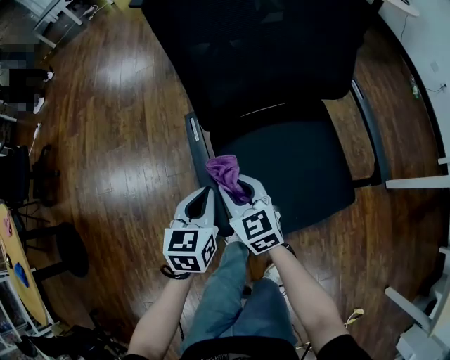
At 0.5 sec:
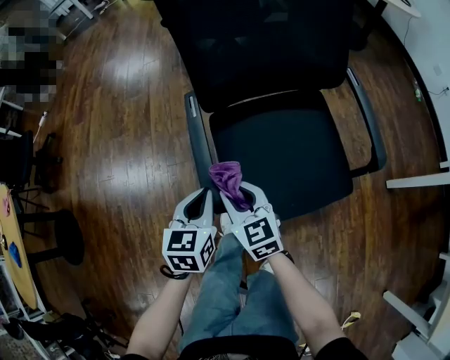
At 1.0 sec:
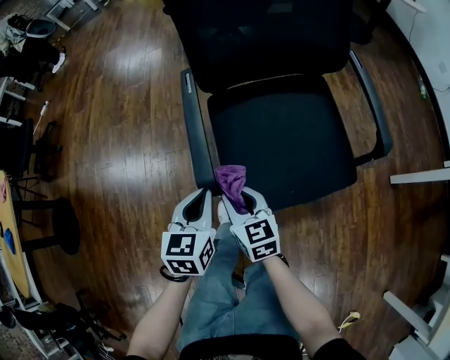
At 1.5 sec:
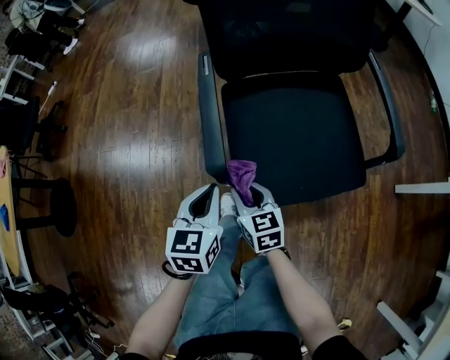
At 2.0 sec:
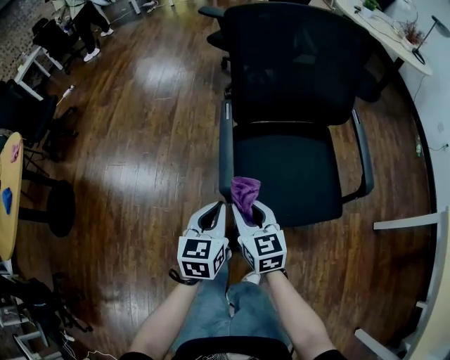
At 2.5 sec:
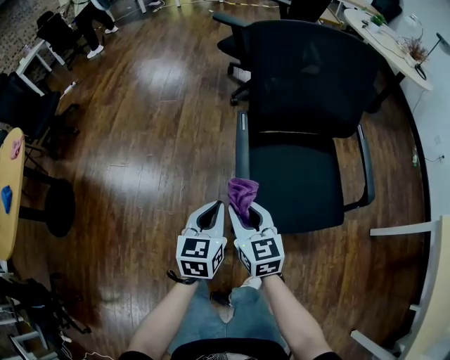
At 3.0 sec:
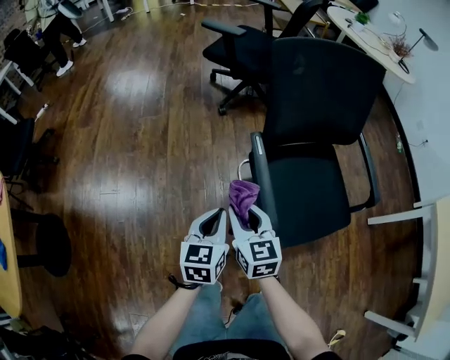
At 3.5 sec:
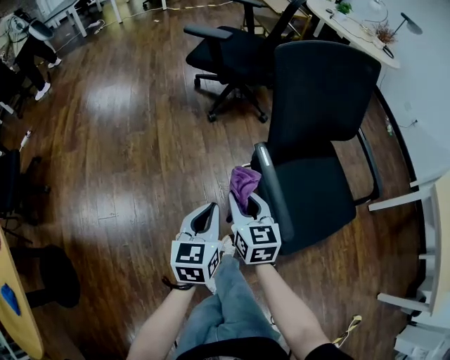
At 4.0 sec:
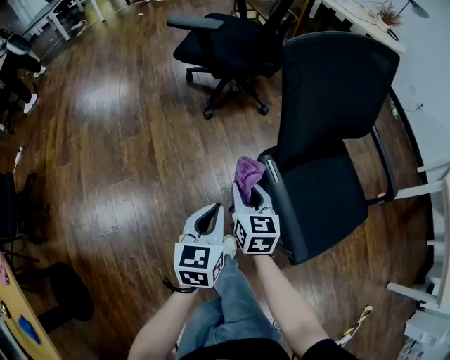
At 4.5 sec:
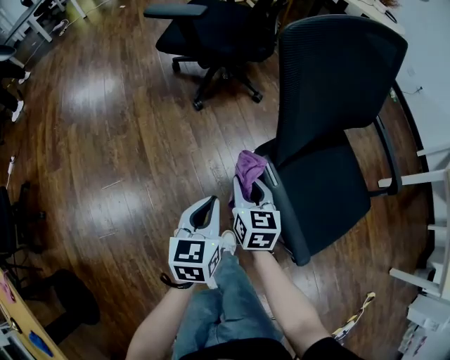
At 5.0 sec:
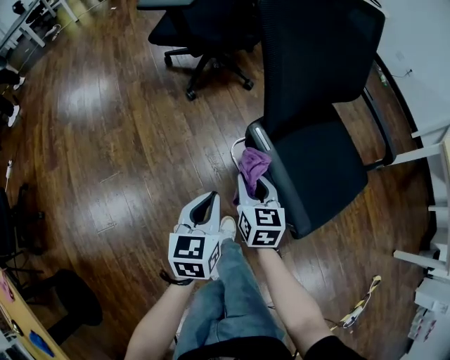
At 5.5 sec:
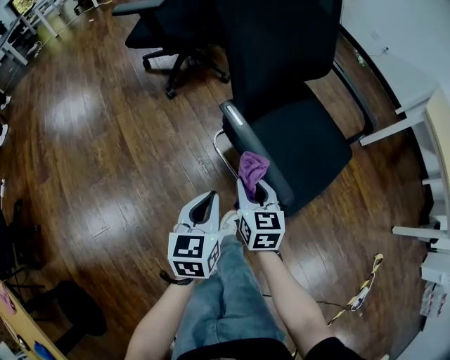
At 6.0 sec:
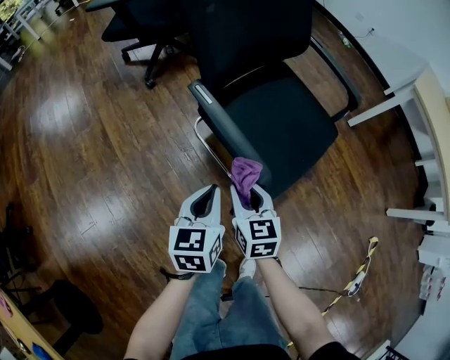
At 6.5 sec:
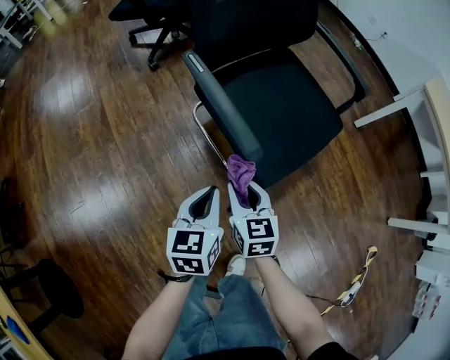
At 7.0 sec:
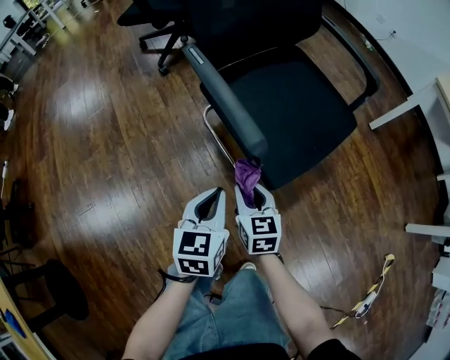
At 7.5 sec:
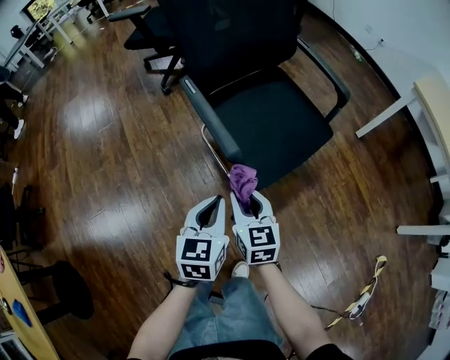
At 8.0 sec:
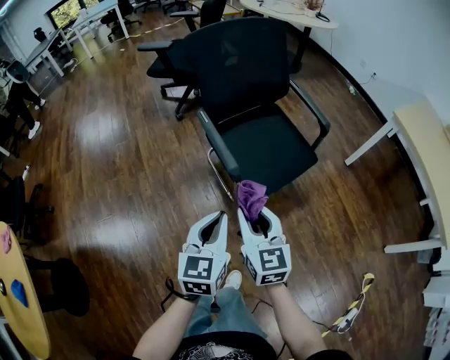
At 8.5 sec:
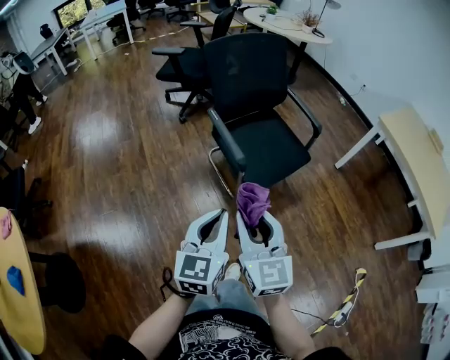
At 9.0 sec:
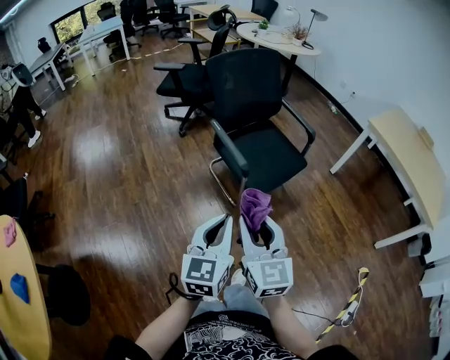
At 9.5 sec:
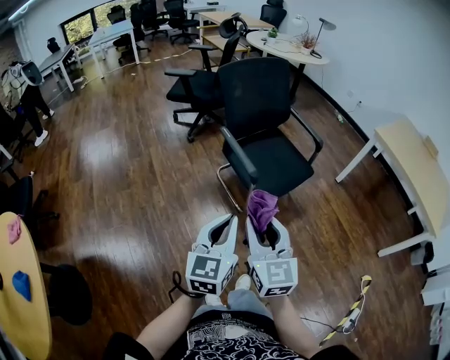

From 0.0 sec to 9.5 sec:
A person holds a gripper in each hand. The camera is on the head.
From 0.0 sec to 2.0 sec: Both grippers move backward, about 15 cm.
From 2.0 sec to 4.0 sec: The left gripper moves some 35 cm, and rotates some 20 degrees. Meanwhile the right gripper shifts by roughly 35 cm, and rotates roughly 30 degrees.
From 4.0 sec to 5.5 sec: Both grippers move backward and to the right, about 15 cm.
From 5.5 sec to 7.5 sec: The left gripper goes approximately 20 cm to the right and backward; the right gripper travels backward and to the right by approximately 20 cm.
From 7.5 sec to 9.5 sec: The two grippers go roughly 40 cm upward and backward. The right gripper swivels approximately 20 degrees, while the left gripper changes its angle by approximately 20 degrees.

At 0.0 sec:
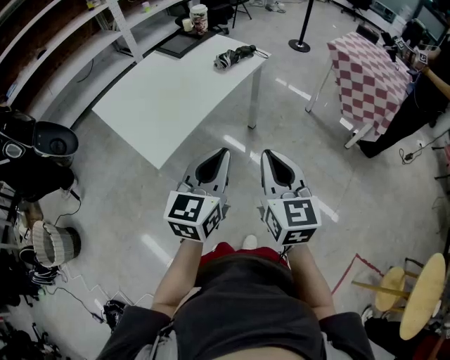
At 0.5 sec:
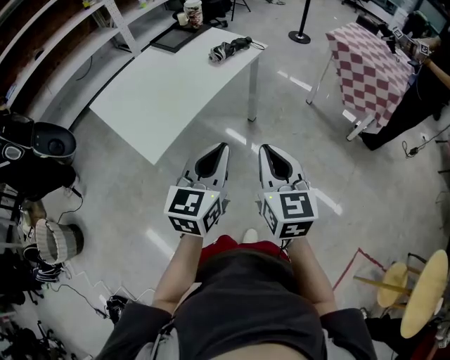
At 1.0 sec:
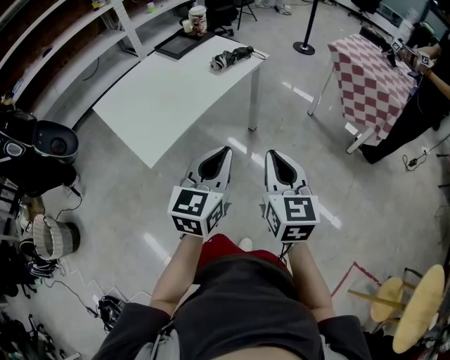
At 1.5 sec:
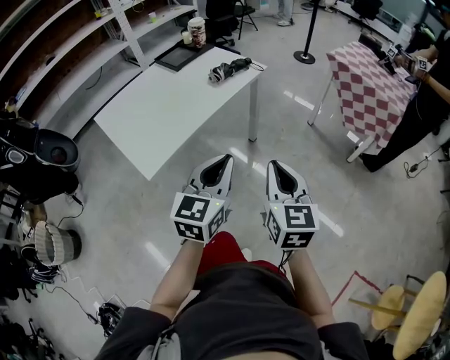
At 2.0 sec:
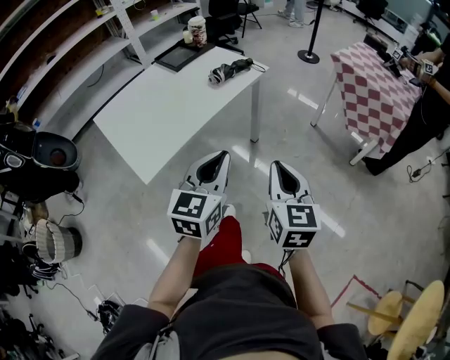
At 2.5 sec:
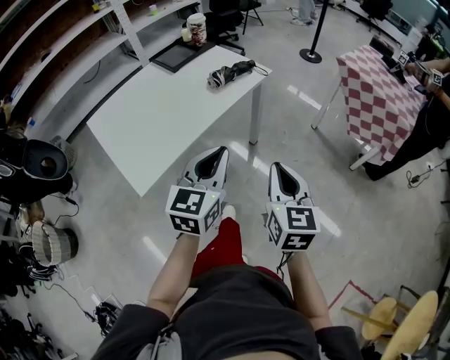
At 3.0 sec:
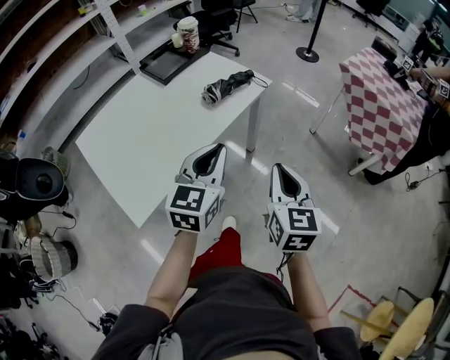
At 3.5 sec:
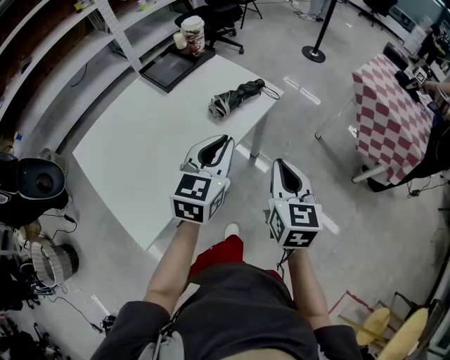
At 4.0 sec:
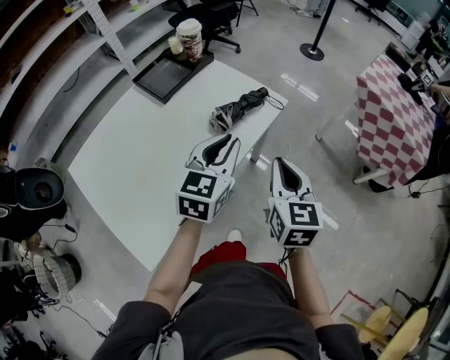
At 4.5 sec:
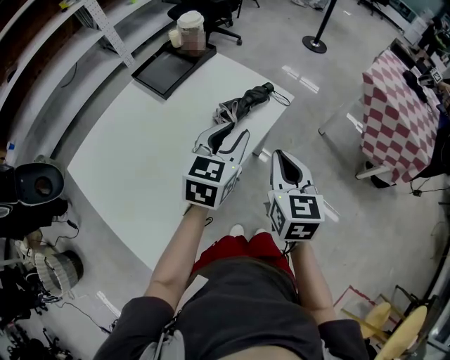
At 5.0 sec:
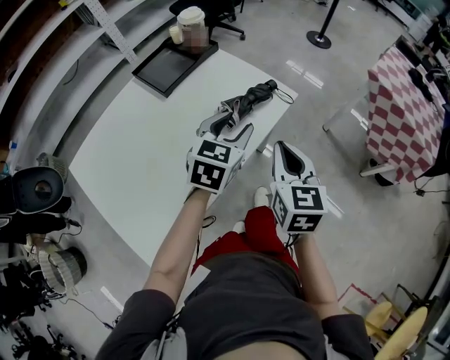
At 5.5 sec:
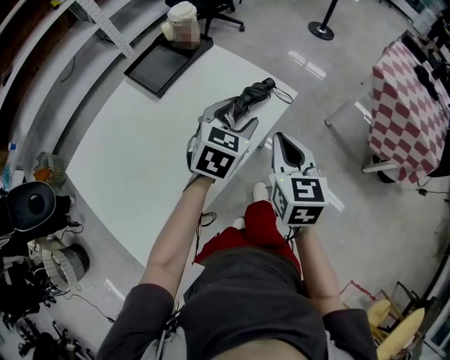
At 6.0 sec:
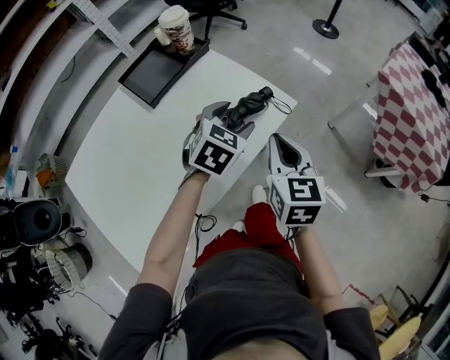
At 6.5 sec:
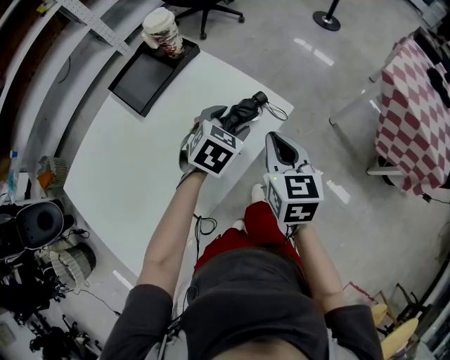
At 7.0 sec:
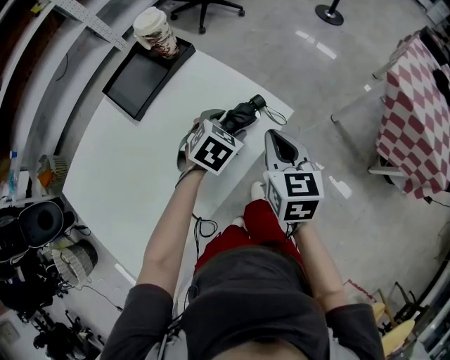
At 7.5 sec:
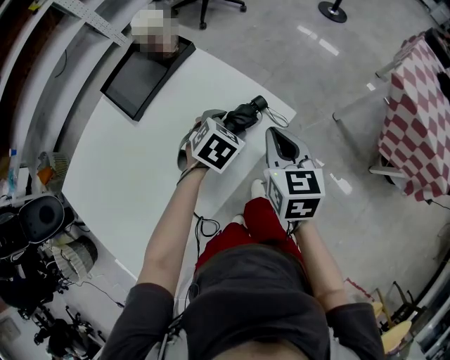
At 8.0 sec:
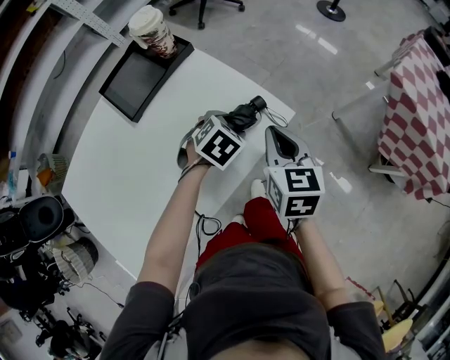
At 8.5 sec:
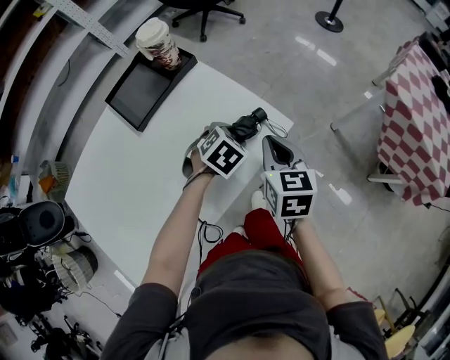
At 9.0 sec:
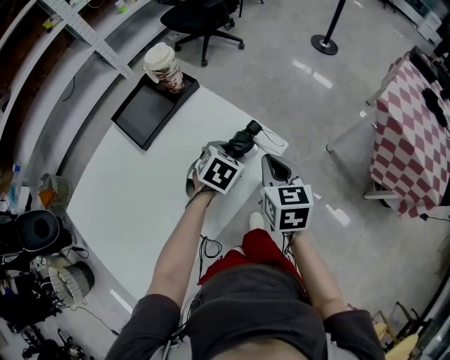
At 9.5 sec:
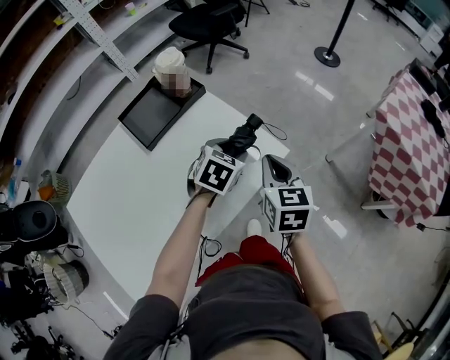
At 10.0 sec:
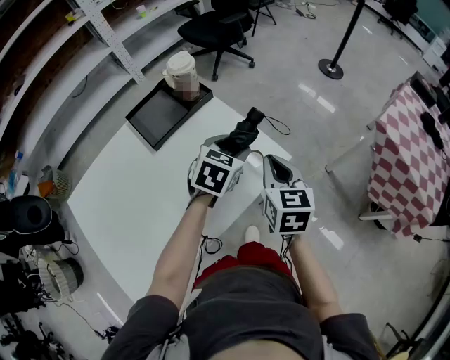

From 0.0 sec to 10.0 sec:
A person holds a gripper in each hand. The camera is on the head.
From 0.0 sec to 2.0 sec: The left gripper is displaced forward and to the right by roughly 10 cm; the right gripper is displaced to the right and forward by approximately 10 cm.
From 2.0 sec to 4.0 sec: Both grippers move forward, roughly 35 cm.
From 4.0 sec to 6.0 sec: The left gripper shifts about 20 cm forward and downward, turns by approximately 30 degrees, and opens up, while the right gripper is displaced forward by about 15 cm.
From 6.0 sec to 8.0 sec: The right gripper is displaced forward by about 10 cm, while the left gripper travels downward and forward by some 15 cm, and rotates about 20 degrees.
From 8.0 sec to 10.0 sec: The left gripper goes some 15 cm upward, and turns by some 30 degrees. The right gripper moves upward, approximately 5 cm.

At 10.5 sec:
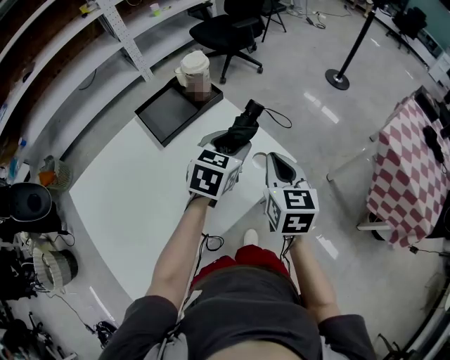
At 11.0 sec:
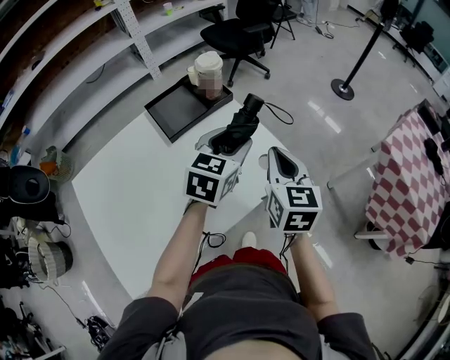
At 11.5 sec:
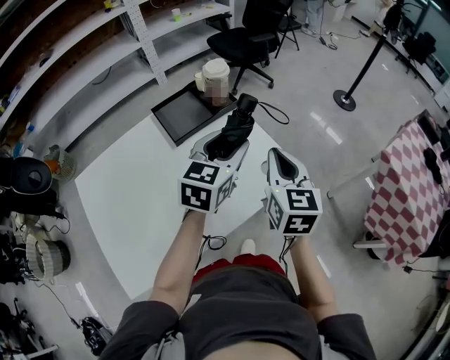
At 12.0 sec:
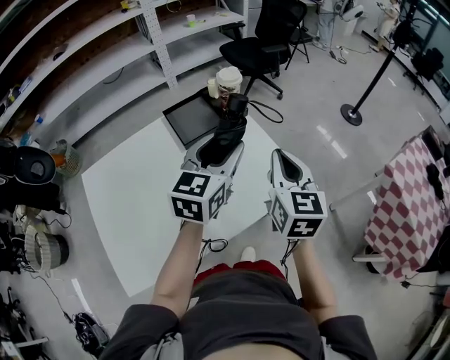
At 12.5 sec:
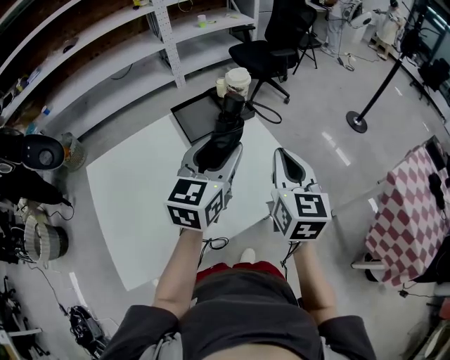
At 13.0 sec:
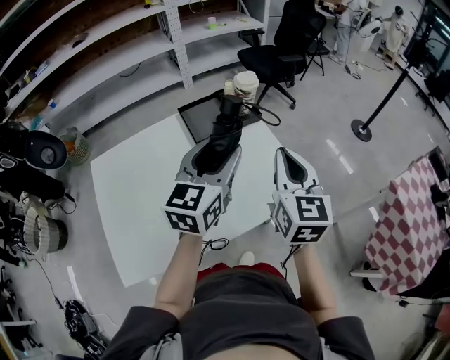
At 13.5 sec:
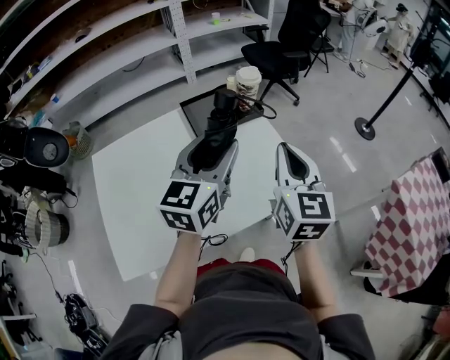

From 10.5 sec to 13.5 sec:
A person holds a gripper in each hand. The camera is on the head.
From 10.5 sec to 12.0 sec: The left gripper moves upward, to the left and backward, some 15 cm, and turns by roughly 30 degrees. Meanwhile the right gripper moves upward and to the left, roughly 10 cm.
From 12.0 sec to 13.5 sec: The left gripper shifts by approximately 5 cm.

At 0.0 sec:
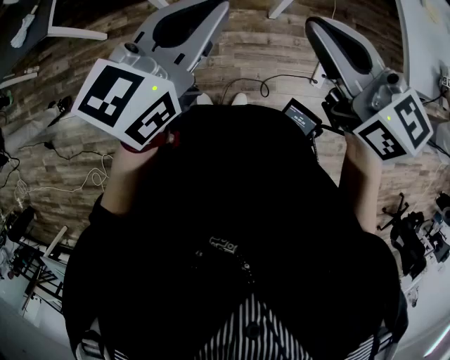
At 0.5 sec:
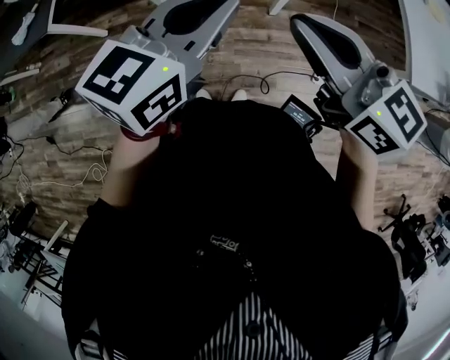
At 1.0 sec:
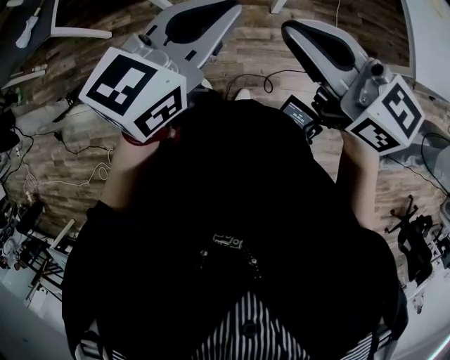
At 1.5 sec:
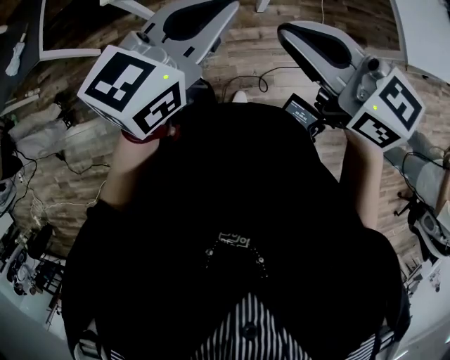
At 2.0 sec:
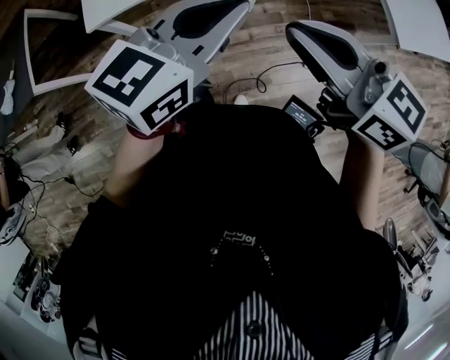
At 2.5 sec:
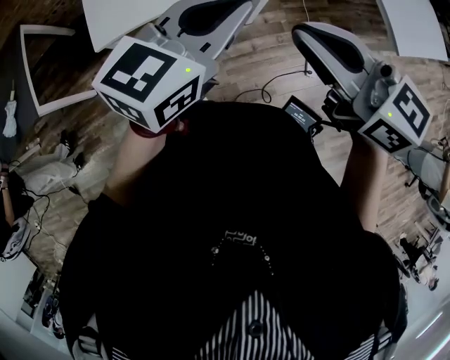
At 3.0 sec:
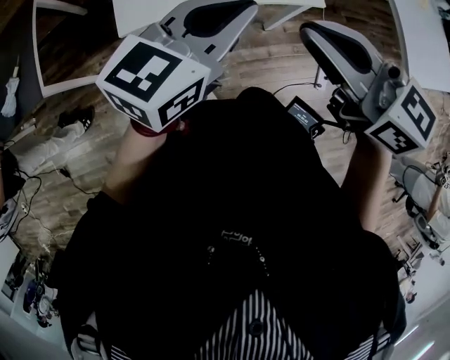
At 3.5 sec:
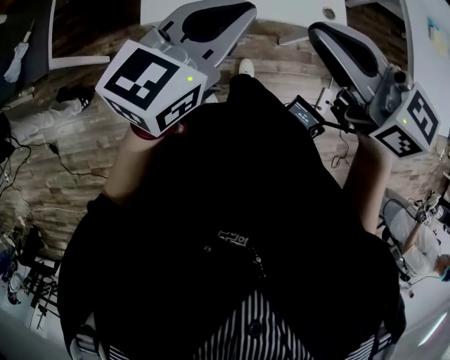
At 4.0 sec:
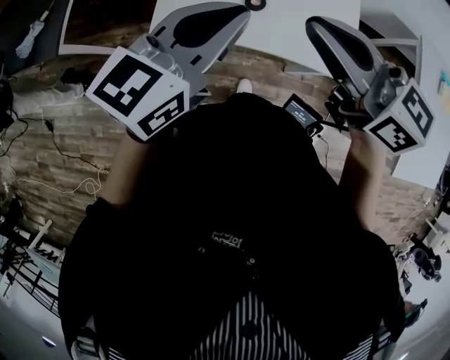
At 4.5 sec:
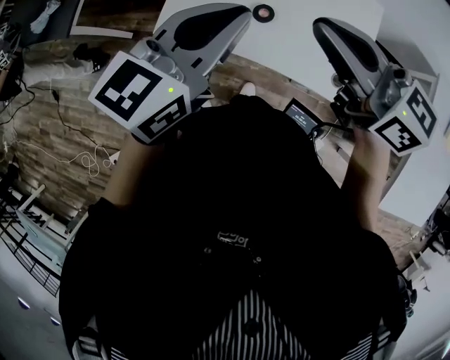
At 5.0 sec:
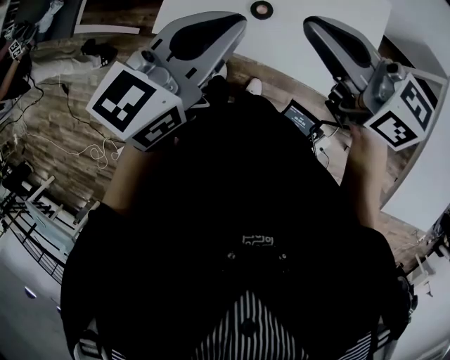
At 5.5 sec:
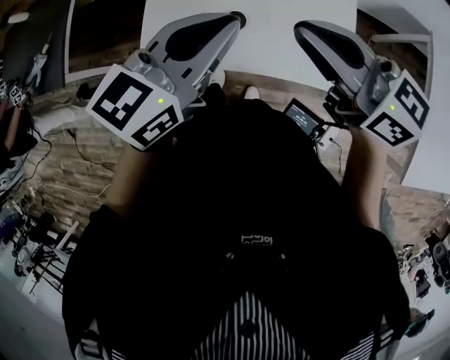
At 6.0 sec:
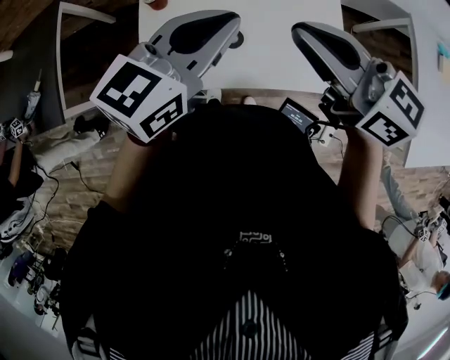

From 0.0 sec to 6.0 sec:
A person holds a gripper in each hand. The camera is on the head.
From 0.0 sec to 2.0 sec: The left gripper shifts roughly 10 cm to the right, and changes its angle by approximately 20 degrees.
From 2.0 sec to 4.0 sec: The left gripper shifts by about 35 cm, and turns by some 20 degrees, while the right gripper changes place by roughly 35 cm, and swivels approximately 20 degrees.
From 4.0 sec to 6.0 sec: Both grippers travel together forward and to the right, some 15 cm.
